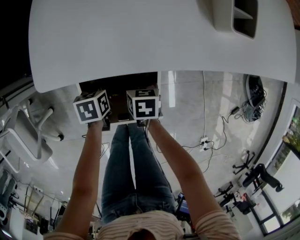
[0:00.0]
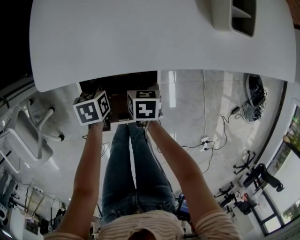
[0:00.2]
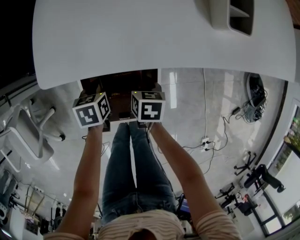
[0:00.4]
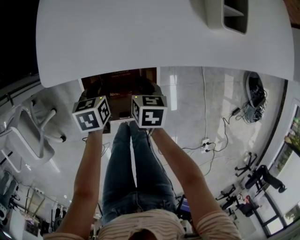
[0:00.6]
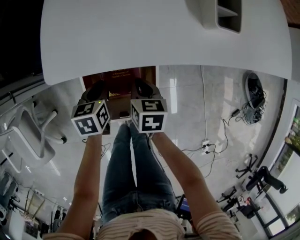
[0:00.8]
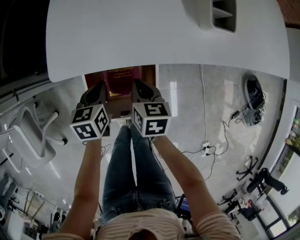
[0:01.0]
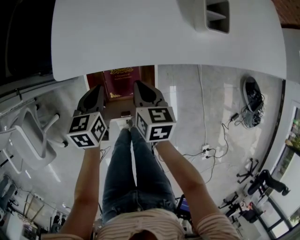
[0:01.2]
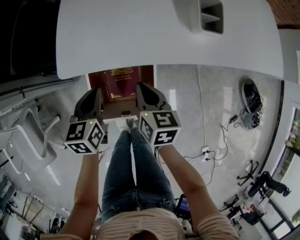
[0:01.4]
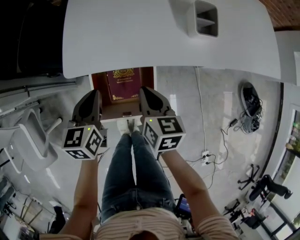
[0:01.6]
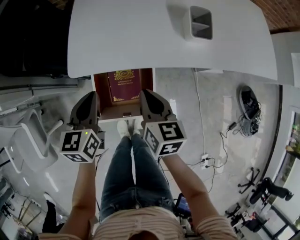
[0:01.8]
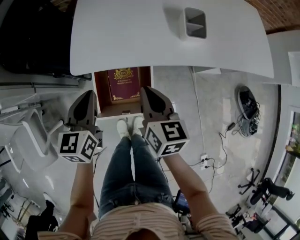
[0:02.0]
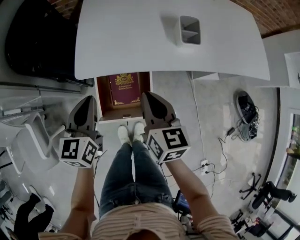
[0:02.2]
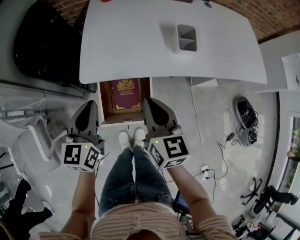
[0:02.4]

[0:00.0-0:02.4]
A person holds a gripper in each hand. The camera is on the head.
0:00.0 to 0:01.2: Both grippers move upward, some 15 cm. The right gripper swivels approximately 20 degrees, and closes its fingers. Meanwhile the left gripper changes its angle by about 30 degrees, and closes up.
0:01.2 to 0:02.4: The grippers both shift upward by approximately 20 cm. The right gripper rotates some 20 degrees. Meanwhile the left gripper turns by some 30 degrees.

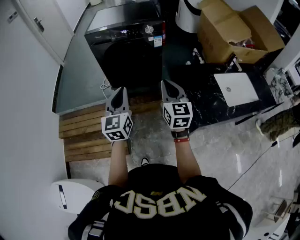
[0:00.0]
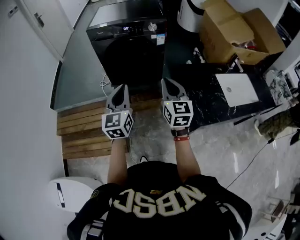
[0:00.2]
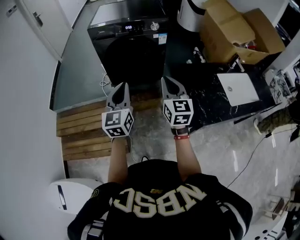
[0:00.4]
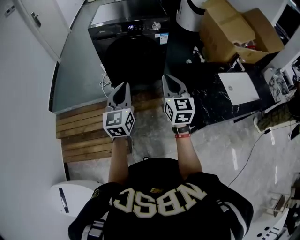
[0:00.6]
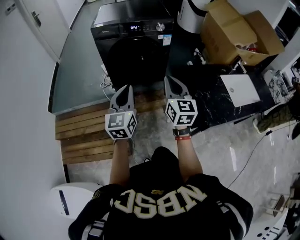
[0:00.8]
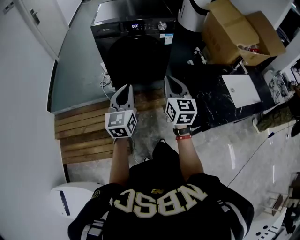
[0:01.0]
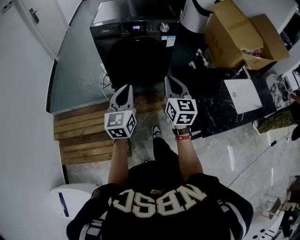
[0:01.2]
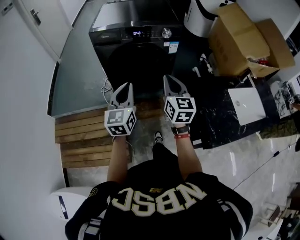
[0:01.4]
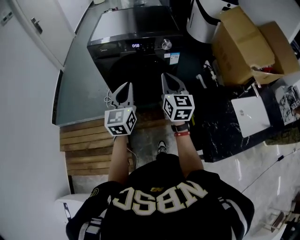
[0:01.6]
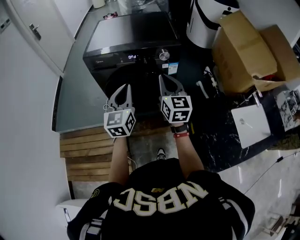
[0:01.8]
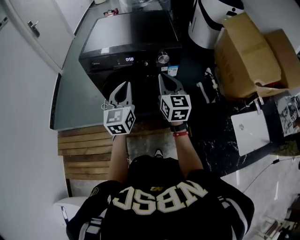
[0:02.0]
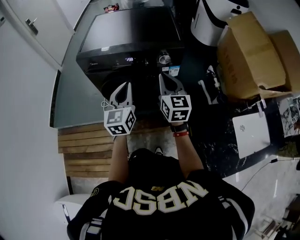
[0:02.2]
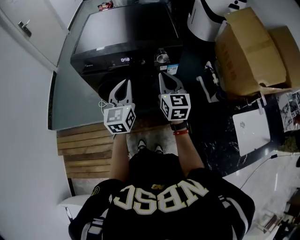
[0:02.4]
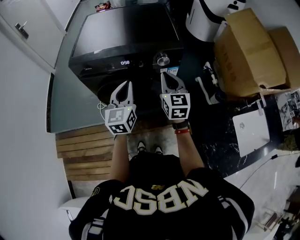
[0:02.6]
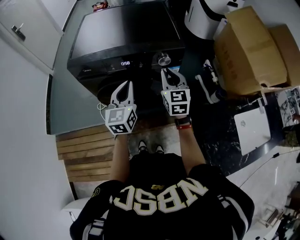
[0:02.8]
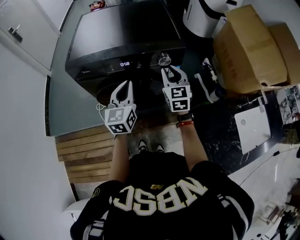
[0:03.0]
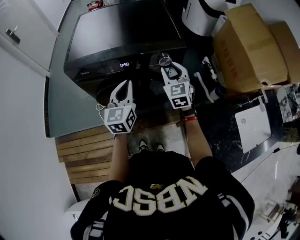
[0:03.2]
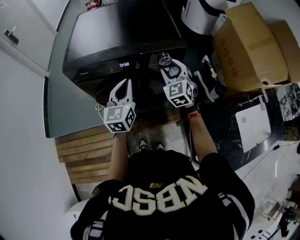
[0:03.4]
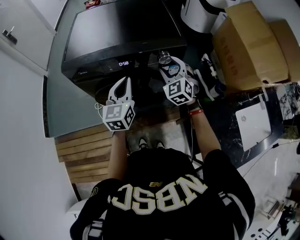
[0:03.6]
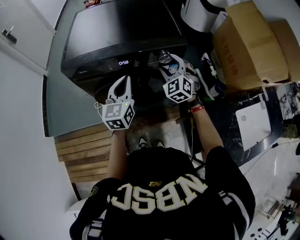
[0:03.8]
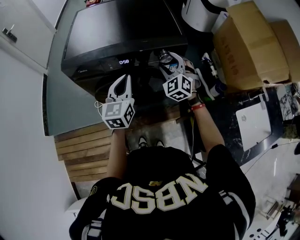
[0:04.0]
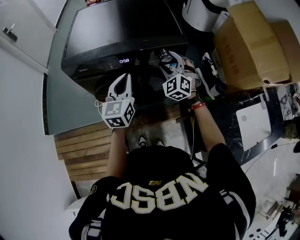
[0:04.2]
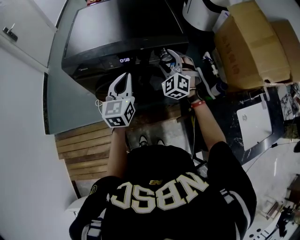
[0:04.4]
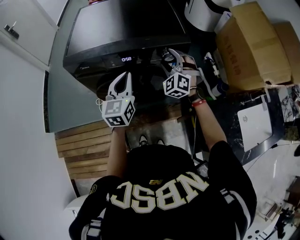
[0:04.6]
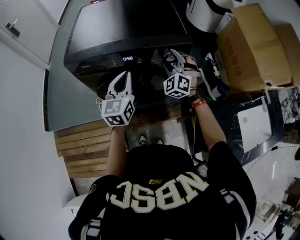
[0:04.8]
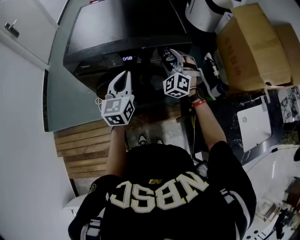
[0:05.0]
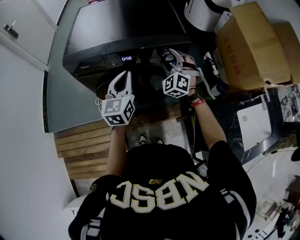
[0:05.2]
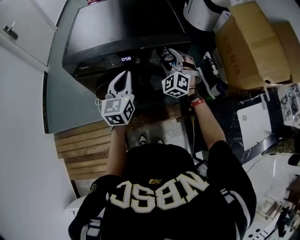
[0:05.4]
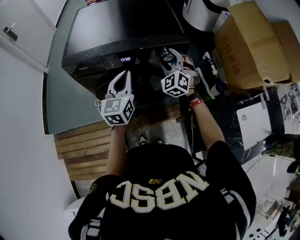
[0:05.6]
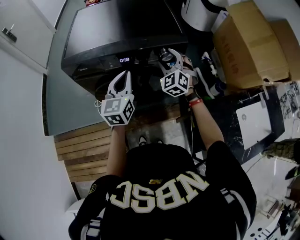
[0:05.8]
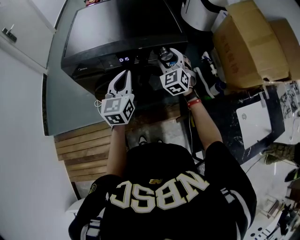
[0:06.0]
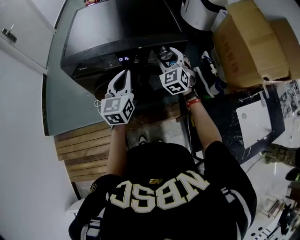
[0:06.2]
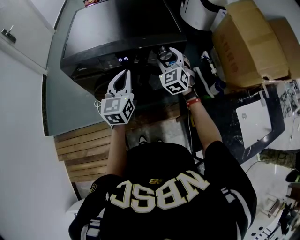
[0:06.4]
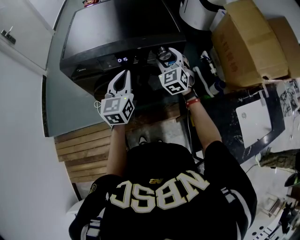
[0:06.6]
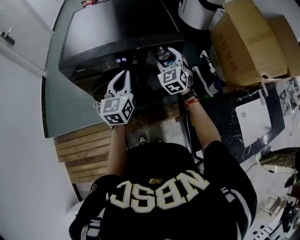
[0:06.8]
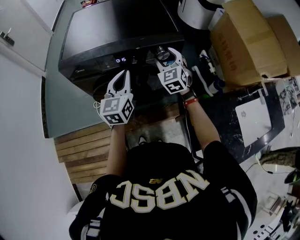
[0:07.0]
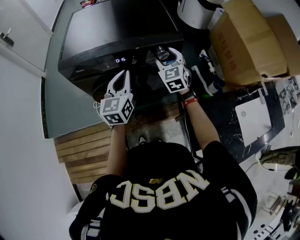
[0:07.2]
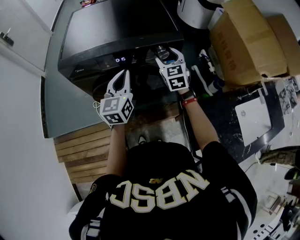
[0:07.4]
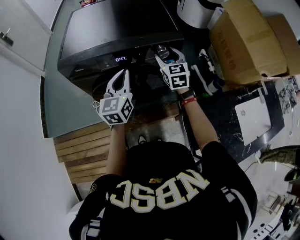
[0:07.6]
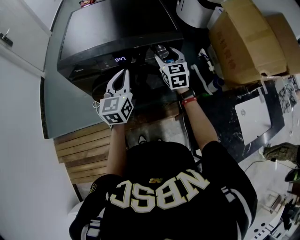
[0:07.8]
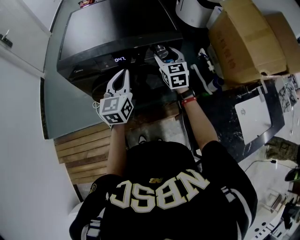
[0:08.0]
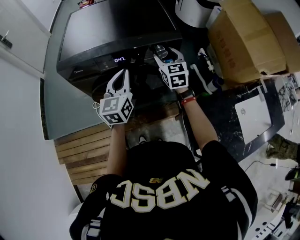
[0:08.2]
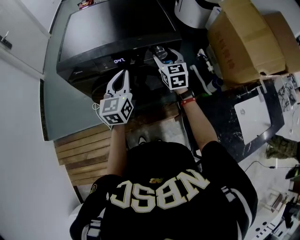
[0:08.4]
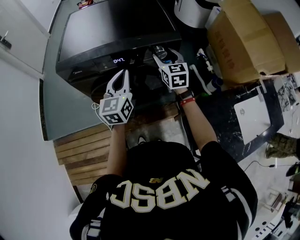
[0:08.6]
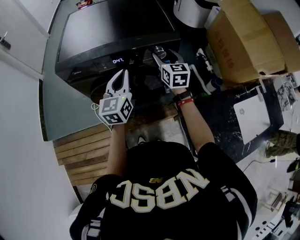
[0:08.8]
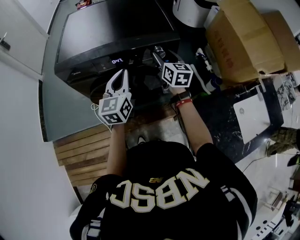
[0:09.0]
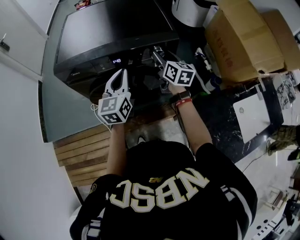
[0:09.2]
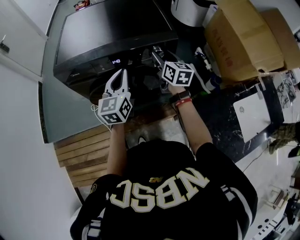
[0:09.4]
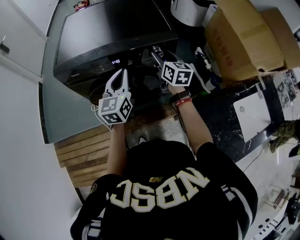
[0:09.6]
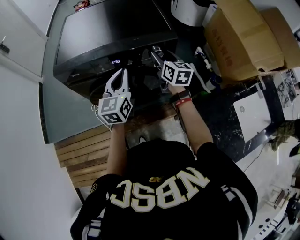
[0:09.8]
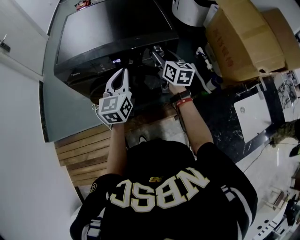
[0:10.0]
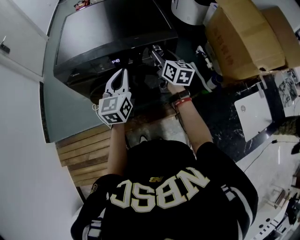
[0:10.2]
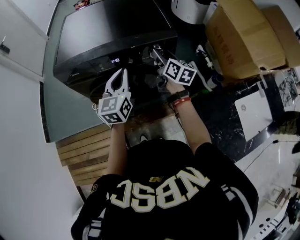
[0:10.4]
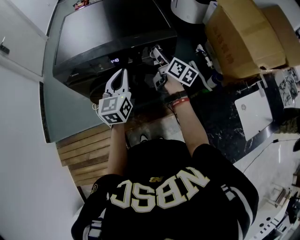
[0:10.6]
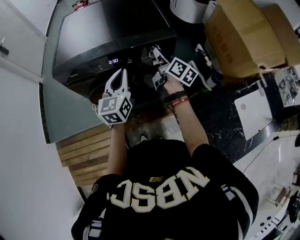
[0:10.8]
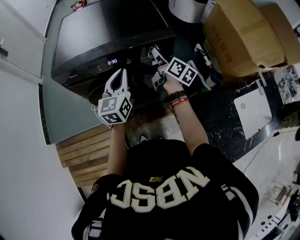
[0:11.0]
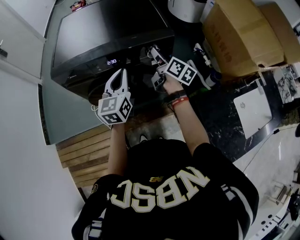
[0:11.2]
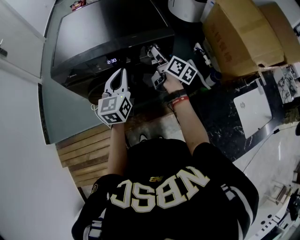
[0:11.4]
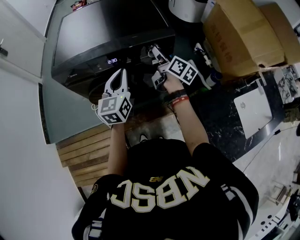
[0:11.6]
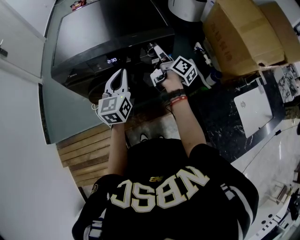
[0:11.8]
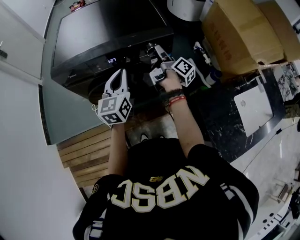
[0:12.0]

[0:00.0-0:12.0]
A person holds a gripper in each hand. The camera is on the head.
0:00.0 to 0:01.6: Both grippers move forward, roughly 25 cm.
0:01.6 to 0:03.0: Both grippers travel together forward, some 20 cm.
0:03.0 to 0:04.4: The right gripper shifts about 5 cm forward, twists about 50 degrees counterclockwise, seen from behind, and opens.
0:04.4 to 0:06.0: The grippers move only a little.
0:06.0 to 0:07.6: The right gripper changes its angle by roughly 30 degrees.
0:07.6 to 0:09.0: The right gripper swivels roughly 20 degrees.
0:09.0 to 0:10.4: There are only small adjustments of the grippers.
0:10.4 to 0:12.0: The right gripper rolls clockwise, seen from behind, by some 50 degrees.

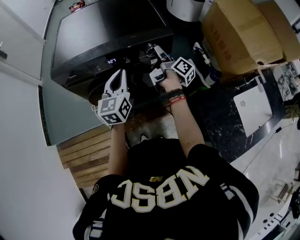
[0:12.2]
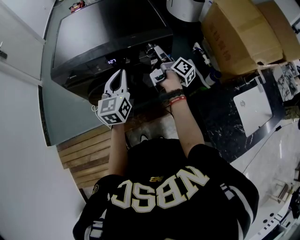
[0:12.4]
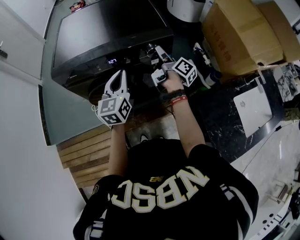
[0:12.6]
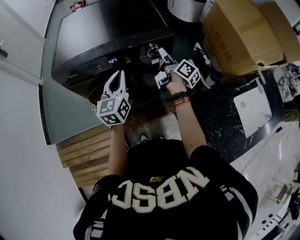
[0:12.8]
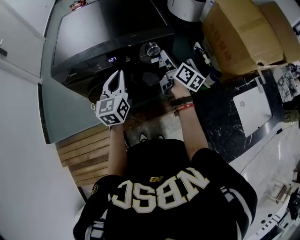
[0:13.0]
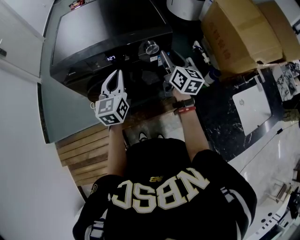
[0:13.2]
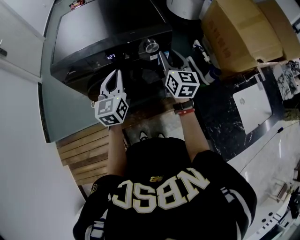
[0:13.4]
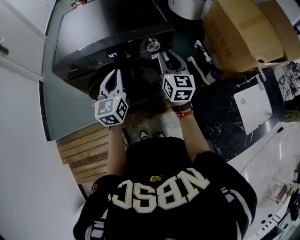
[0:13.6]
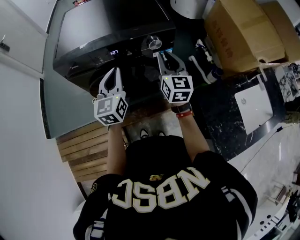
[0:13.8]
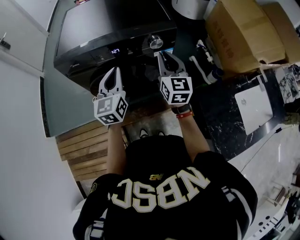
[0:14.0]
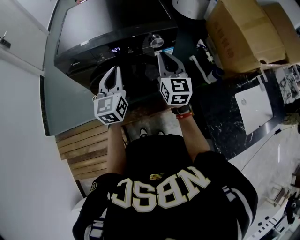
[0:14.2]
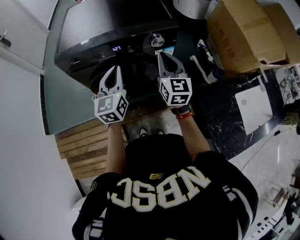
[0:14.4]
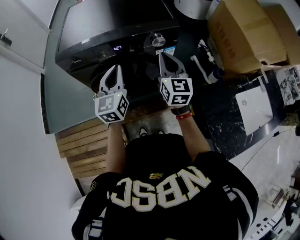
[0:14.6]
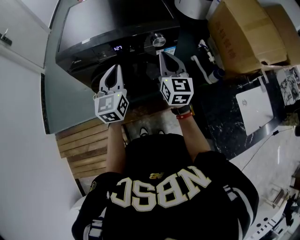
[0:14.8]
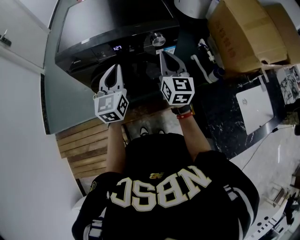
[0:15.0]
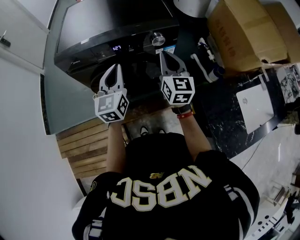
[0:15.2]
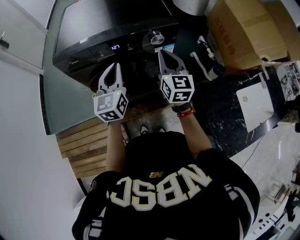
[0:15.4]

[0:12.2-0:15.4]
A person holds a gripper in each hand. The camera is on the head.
0:12.2 to 0:13.8: The right gripper travels backward and upward by approximately 10 cm, rolls counterclockwise, seen from behind, by some 80 degrees, and closes.
0:13.8 to 0:15.4: The grippers stay close to where they were, moving slightly.

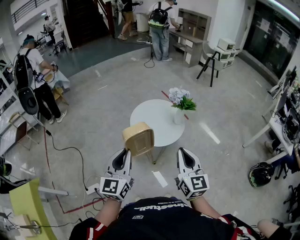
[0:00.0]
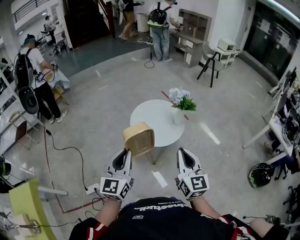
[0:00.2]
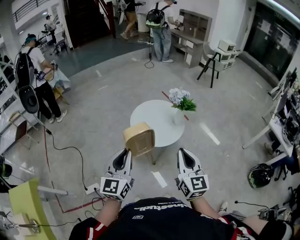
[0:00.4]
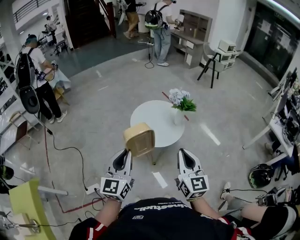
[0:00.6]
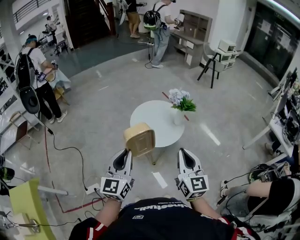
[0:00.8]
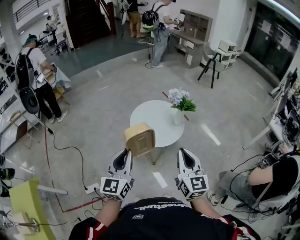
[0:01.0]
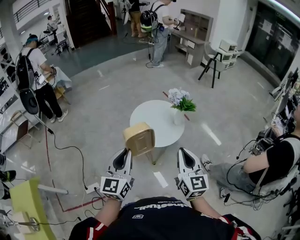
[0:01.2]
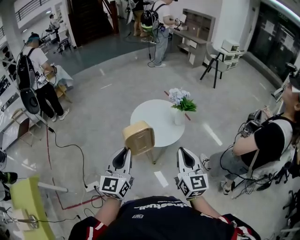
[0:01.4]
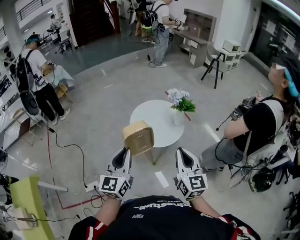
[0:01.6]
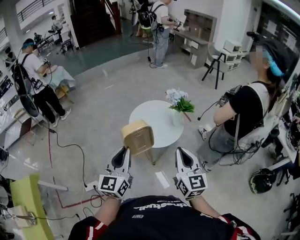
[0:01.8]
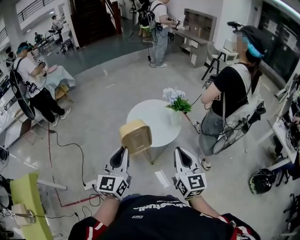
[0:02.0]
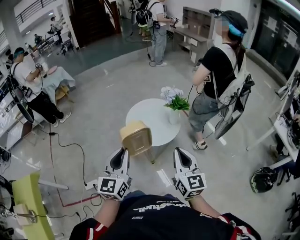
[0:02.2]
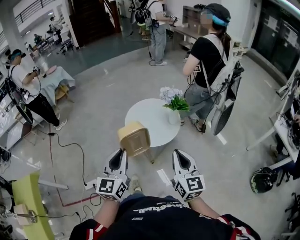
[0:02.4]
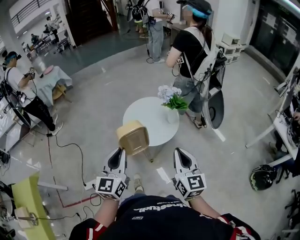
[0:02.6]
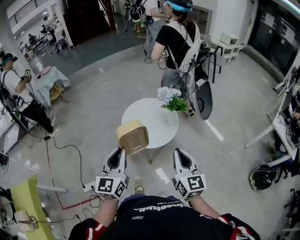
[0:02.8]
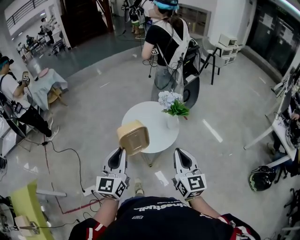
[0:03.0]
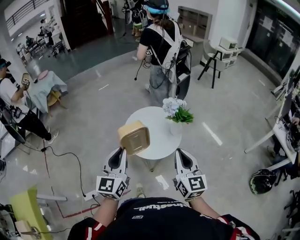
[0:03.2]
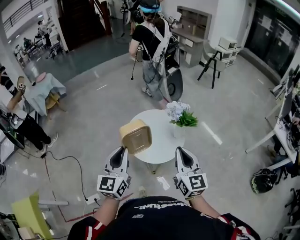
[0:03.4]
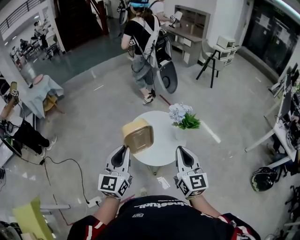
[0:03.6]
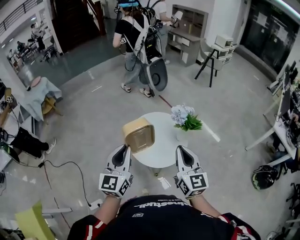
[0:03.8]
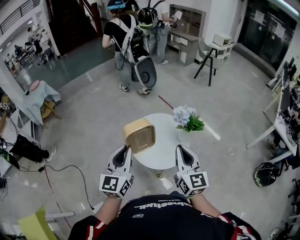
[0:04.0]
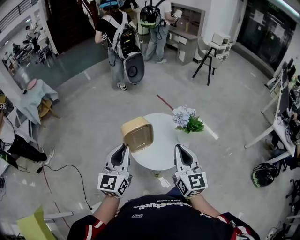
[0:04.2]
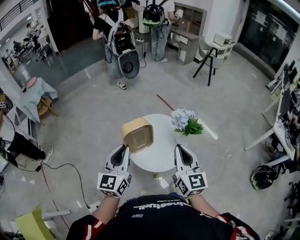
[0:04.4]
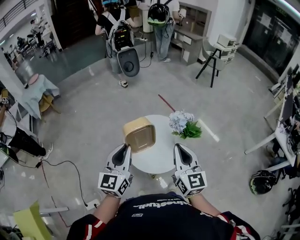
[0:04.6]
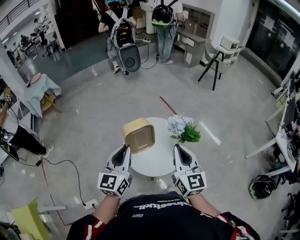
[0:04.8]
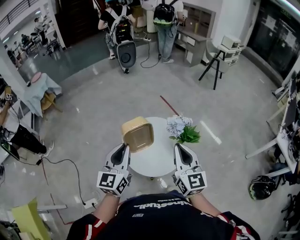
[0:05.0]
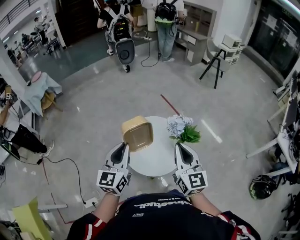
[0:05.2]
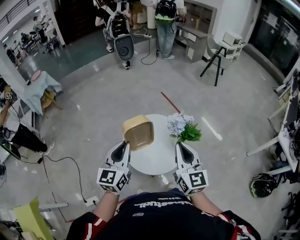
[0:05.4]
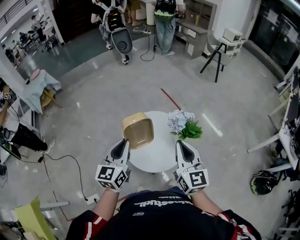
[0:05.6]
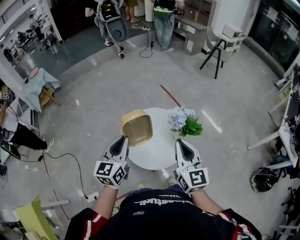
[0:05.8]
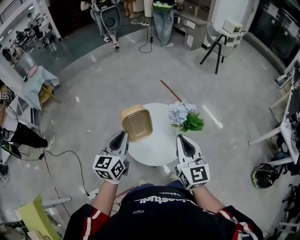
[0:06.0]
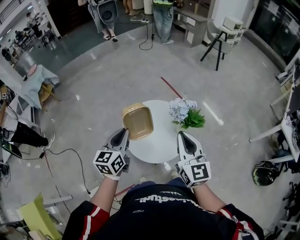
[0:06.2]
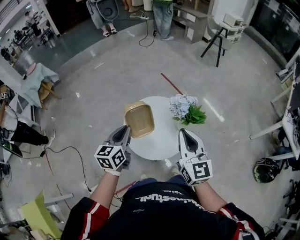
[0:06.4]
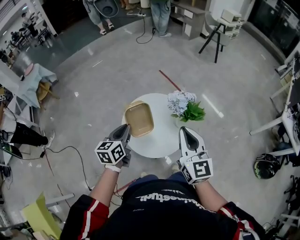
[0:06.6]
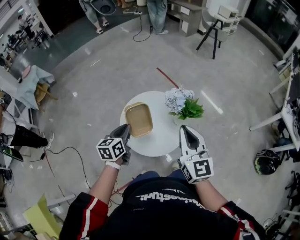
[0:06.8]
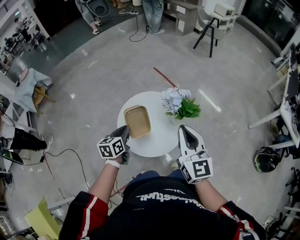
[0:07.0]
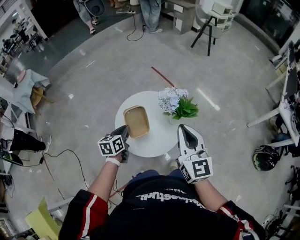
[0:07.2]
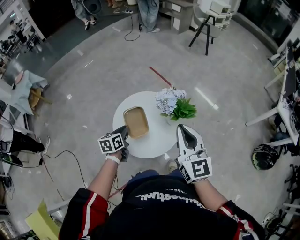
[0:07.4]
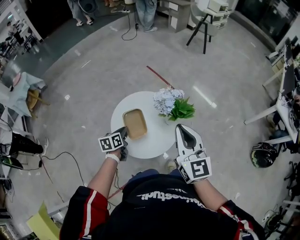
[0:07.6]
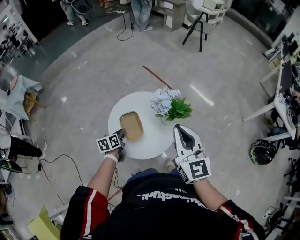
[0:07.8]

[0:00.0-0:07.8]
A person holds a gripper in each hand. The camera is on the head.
0:00.0 to 0:01.6: The grippers stay close to where they were, moving slightly.
0:01.6 to 0:03.2: Both grippers travel together forward, some 10 cm.
0:03.2 to 0:04.6: The grippers both shift forward by about 15 cm.
0:04.6 to 0:06.2: The left gripper goes some 10 cm downward and forward, while the right gripper changes place by approximately 5 cm.
0:06.2 to 0:07.8: The right gripper travels to the right by about 5 cm, while the left gripper goes some 25 cm downward, and turns by about 30 degrees.
